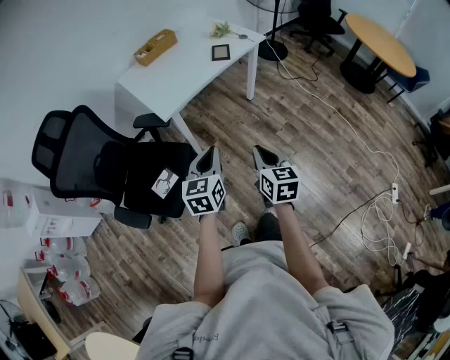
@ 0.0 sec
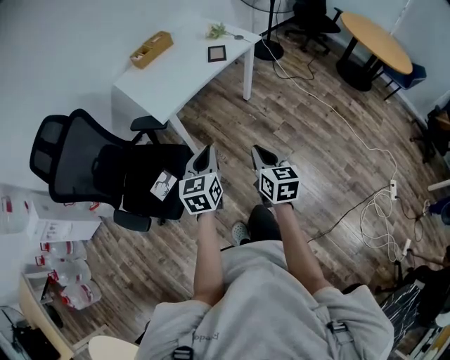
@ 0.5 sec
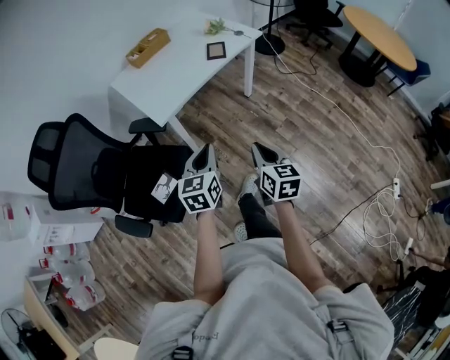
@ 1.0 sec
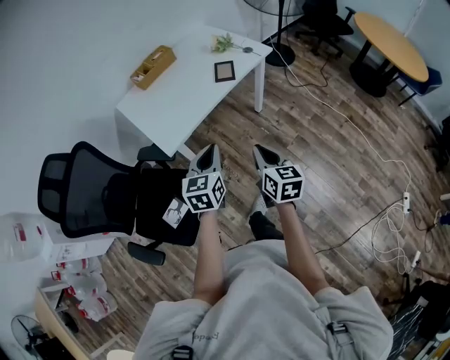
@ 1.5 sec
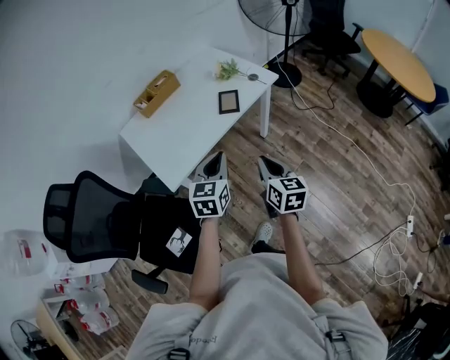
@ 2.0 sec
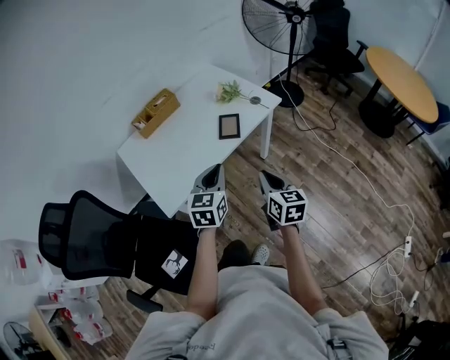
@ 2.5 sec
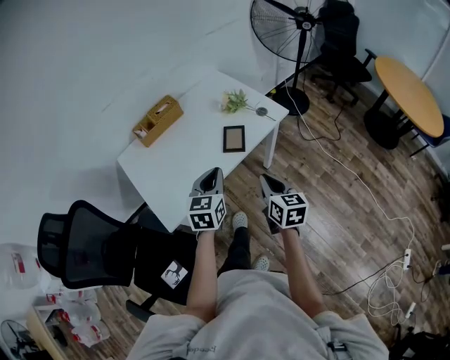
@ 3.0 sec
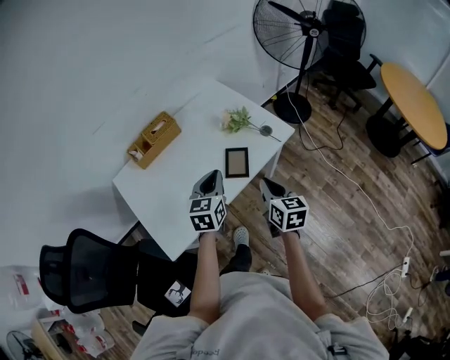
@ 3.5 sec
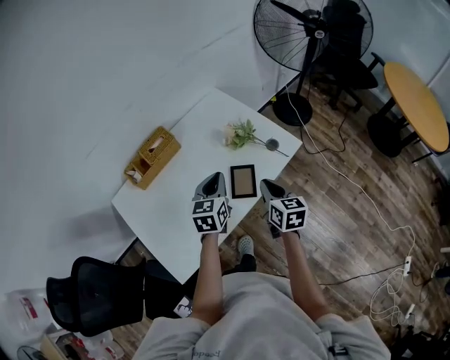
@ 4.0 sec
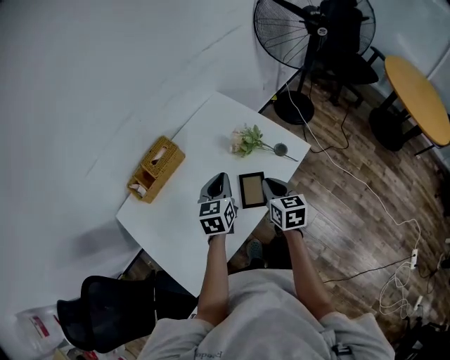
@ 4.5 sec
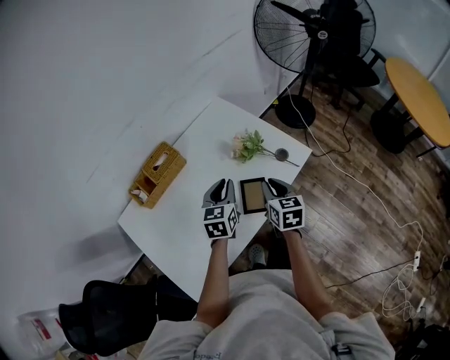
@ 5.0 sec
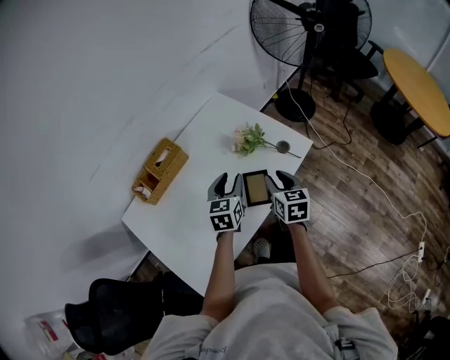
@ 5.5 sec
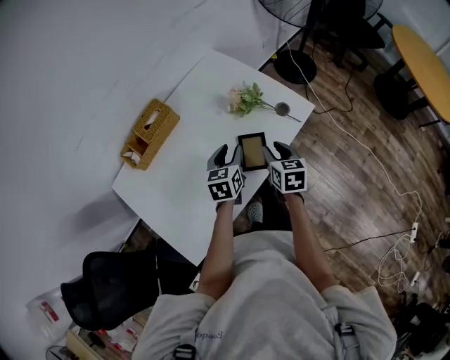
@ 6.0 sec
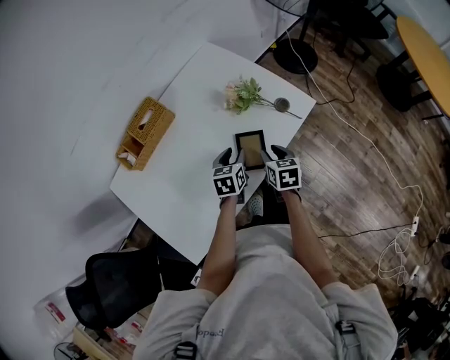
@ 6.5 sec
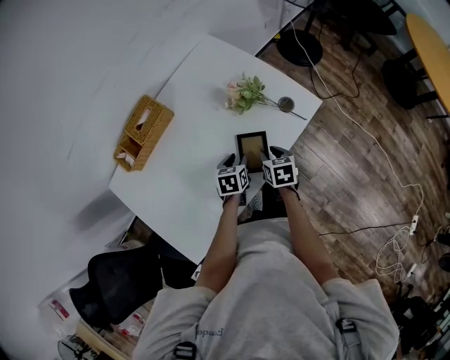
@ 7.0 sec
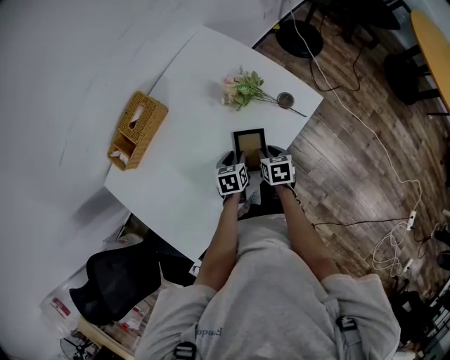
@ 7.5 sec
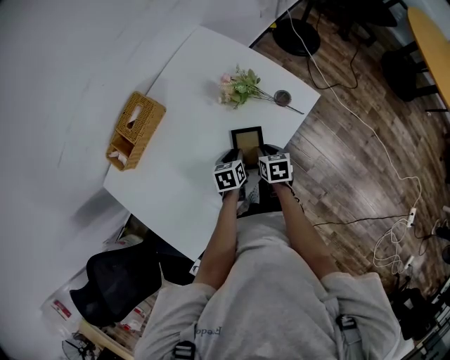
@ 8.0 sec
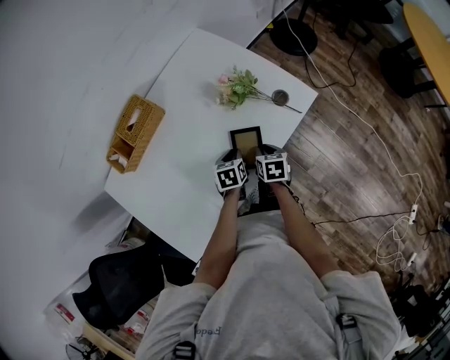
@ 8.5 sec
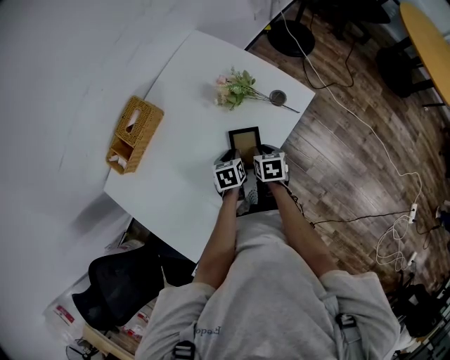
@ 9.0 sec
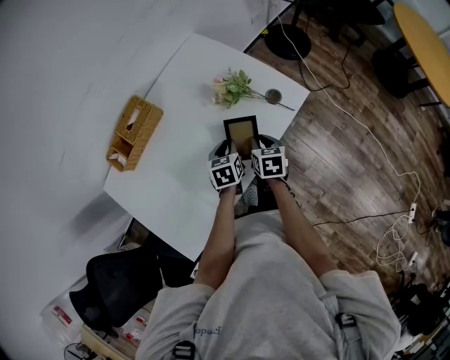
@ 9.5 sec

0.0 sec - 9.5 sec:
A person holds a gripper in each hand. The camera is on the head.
0.0 sec - 2.0 sec: The two grippers go approximately 30 cm forward.
2.0 sec - 4.0 sec: Both grippers move forward, approximately 40 cm.
4.0 sec - 5.5 sec: The left gripper moves about 5 cm, and opens up; the right gripper goes about 5 cm forward, and opens its fingers.
5.5 sec - 7.5 sec: Both grippers travel together downward, approximately 20 cm. The right gripper changes its angle by roughly 30 degrees. Meanwhile the left gripper changes its angle by some 30 degrees.
7.5 sec - 9.5 sec: Both grippers travel together upward, roughly 5 cm.

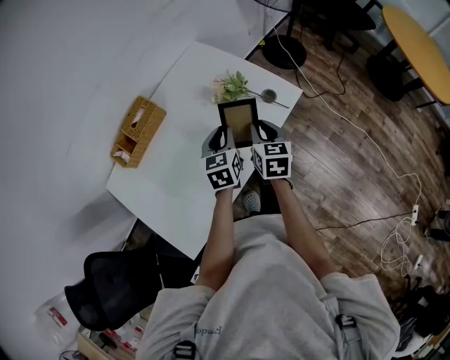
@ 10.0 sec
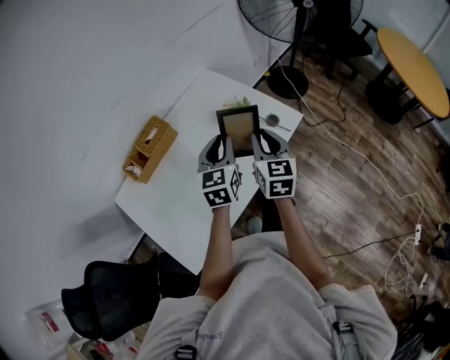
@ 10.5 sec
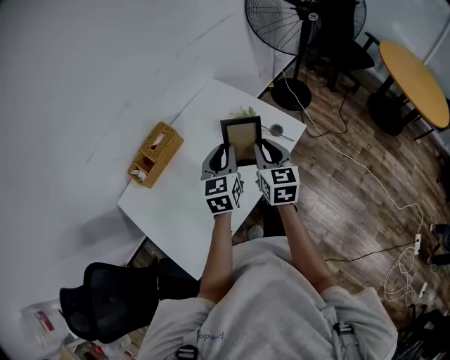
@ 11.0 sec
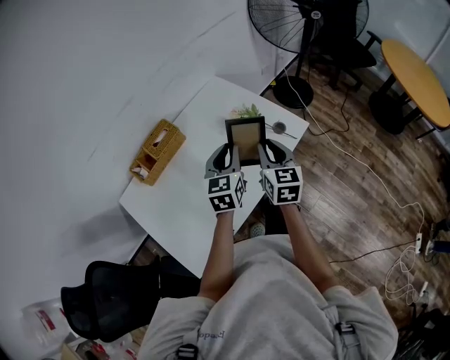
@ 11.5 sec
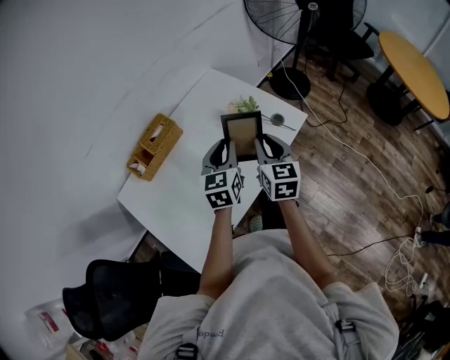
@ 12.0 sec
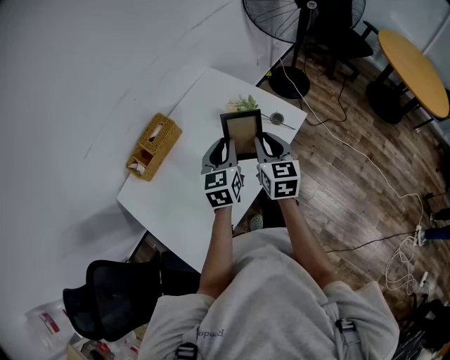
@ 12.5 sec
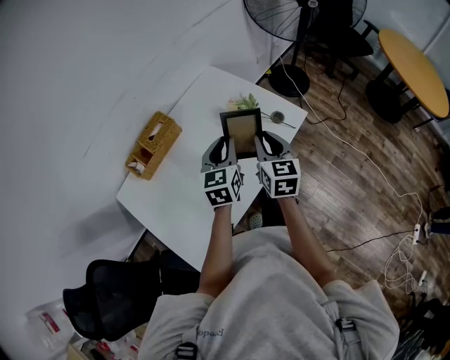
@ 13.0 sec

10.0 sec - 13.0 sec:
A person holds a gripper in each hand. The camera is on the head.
10.0 sec - 11.5 sec: The grippers both shift upward by about 10 cm.
11.5 sec - 13.0 sec: The grippers move only a little.

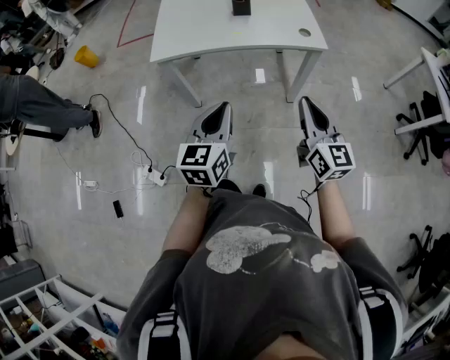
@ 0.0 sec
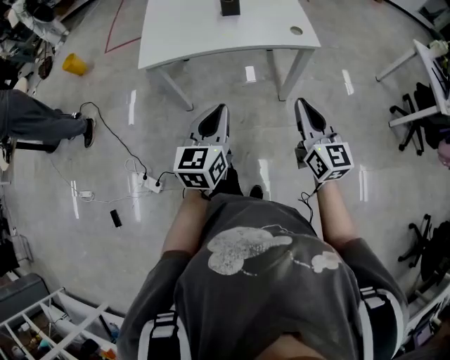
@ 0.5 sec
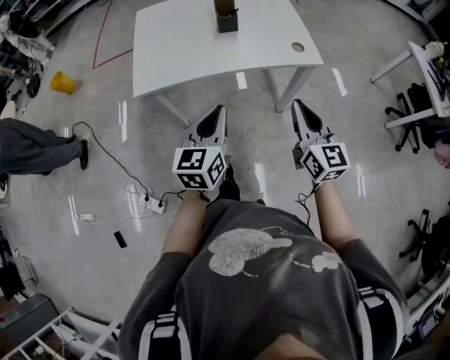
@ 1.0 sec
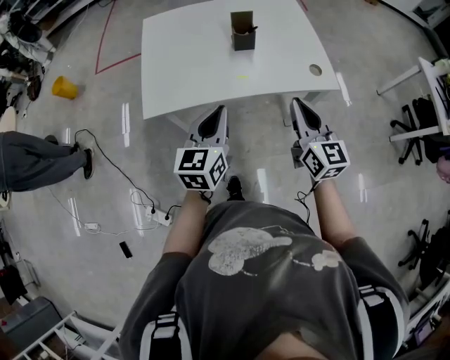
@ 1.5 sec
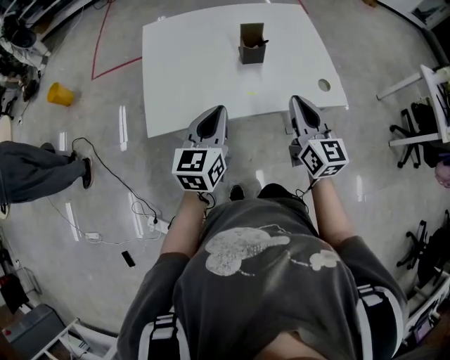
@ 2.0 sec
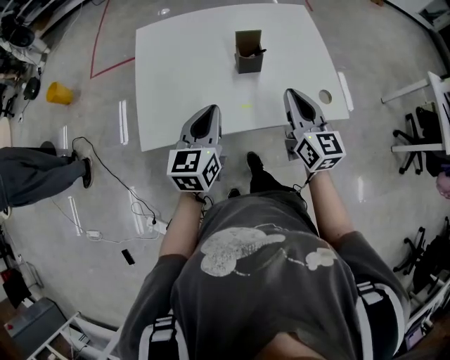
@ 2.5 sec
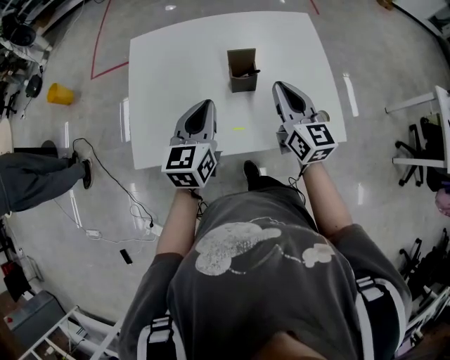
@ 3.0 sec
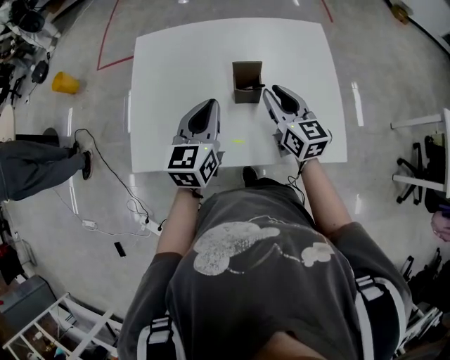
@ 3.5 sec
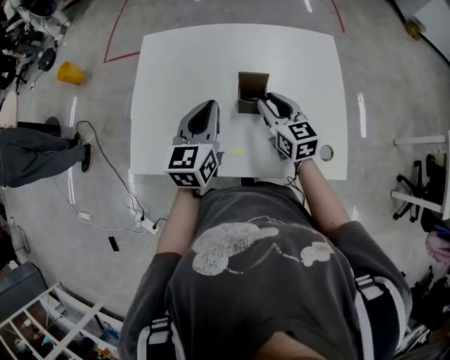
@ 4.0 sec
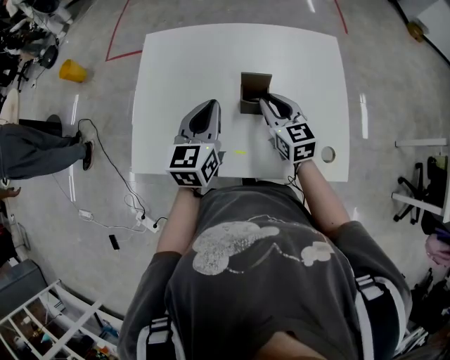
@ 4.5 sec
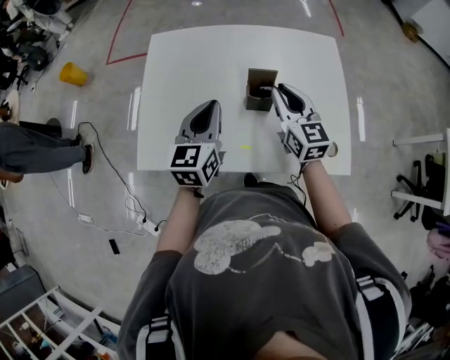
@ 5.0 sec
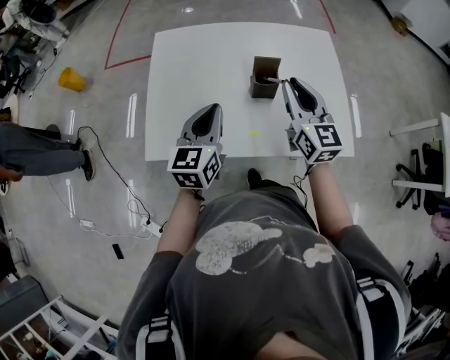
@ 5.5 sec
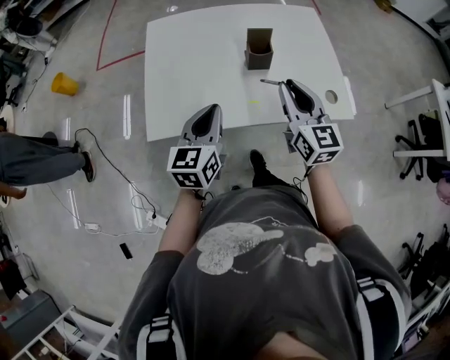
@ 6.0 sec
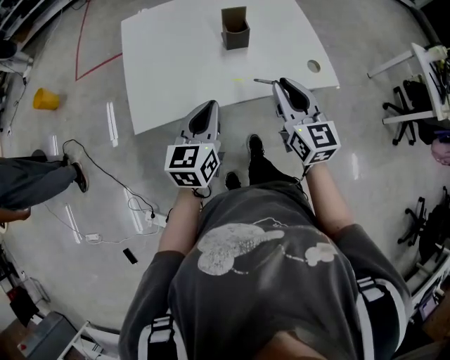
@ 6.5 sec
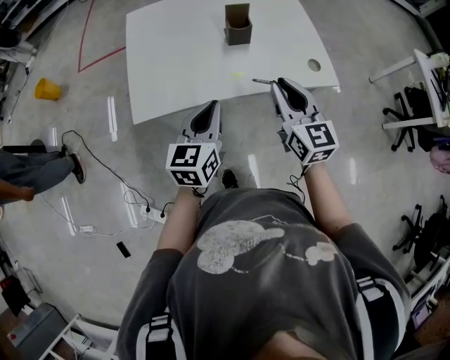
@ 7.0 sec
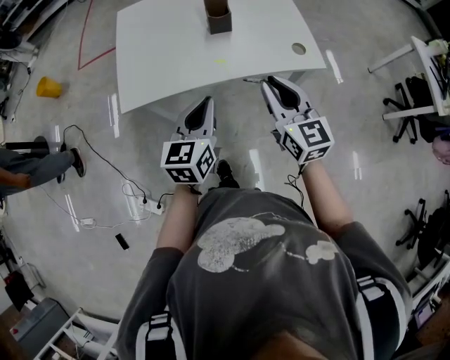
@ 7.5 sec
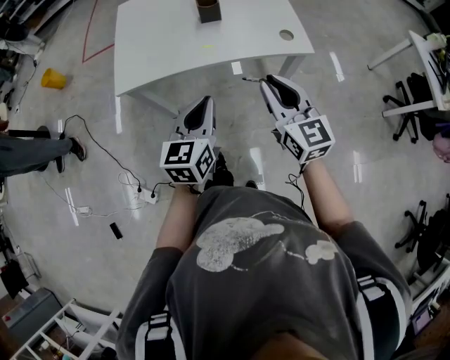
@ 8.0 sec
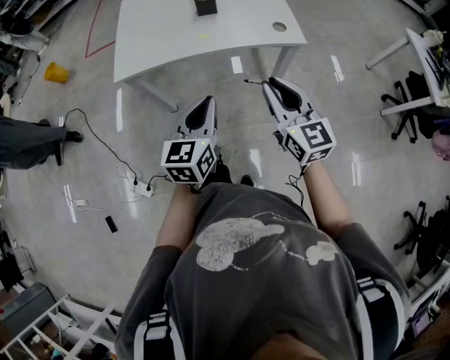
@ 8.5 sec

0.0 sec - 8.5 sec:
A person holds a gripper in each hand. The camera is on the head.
0.0 sec - 2.0 sec: Both grippers travel together forward, approximately 30 cm.
2.0 sec - 4.0 sec: The two grippers go roughly 25 cm forward. The right gripper changes its angle by some 30 degrees, and opens.
4.0 sec - 6.5 sec: Both grippers travel together backward, about 25 cm. The right gripper changes its angle by roughly 20 degrees.
6.5 sec - 8.5 sec: Both grippers travel together backward and to the right, approximately 25 cm.

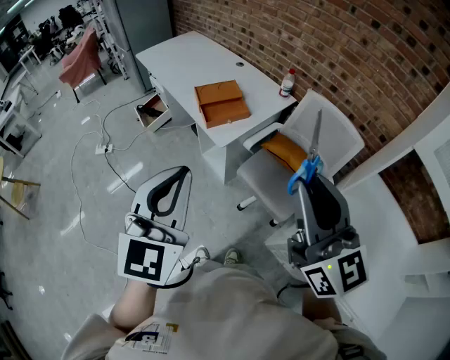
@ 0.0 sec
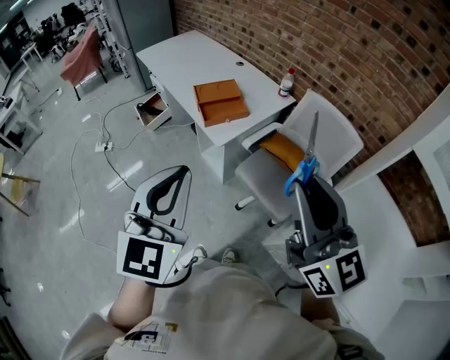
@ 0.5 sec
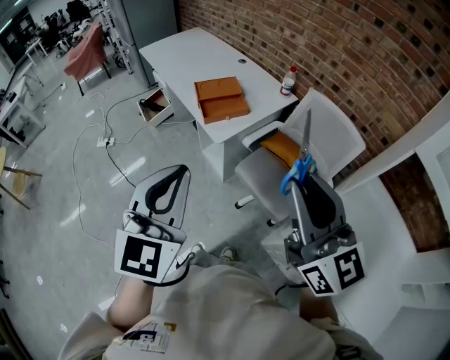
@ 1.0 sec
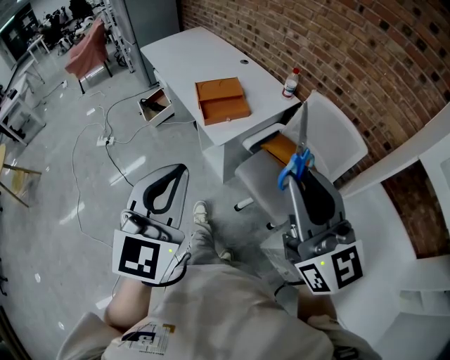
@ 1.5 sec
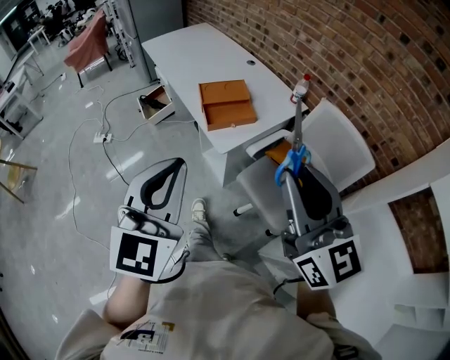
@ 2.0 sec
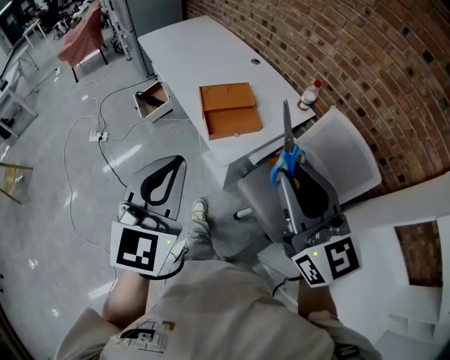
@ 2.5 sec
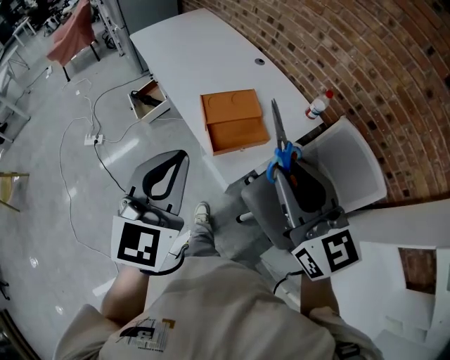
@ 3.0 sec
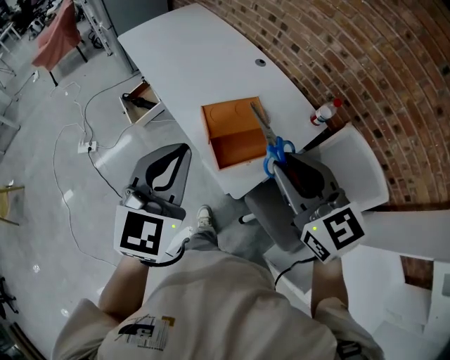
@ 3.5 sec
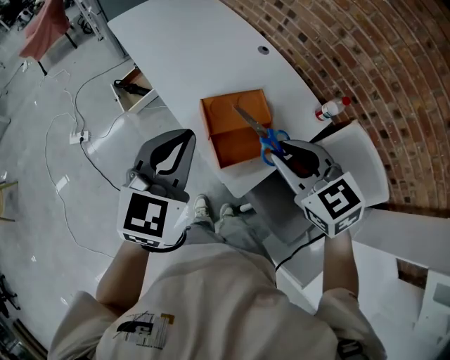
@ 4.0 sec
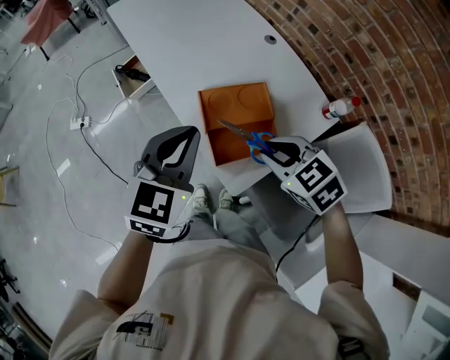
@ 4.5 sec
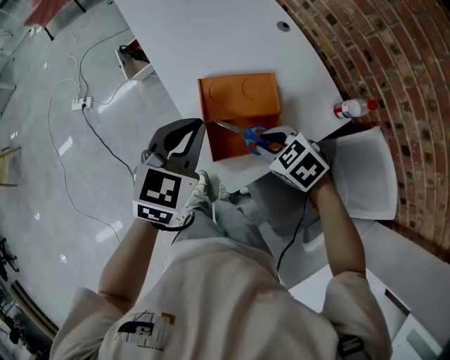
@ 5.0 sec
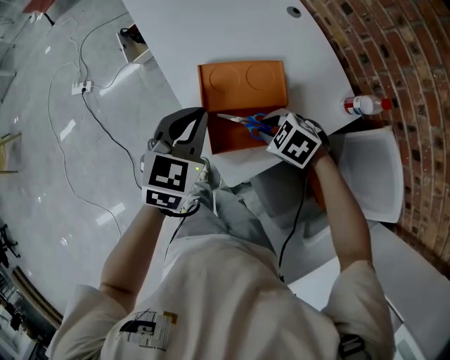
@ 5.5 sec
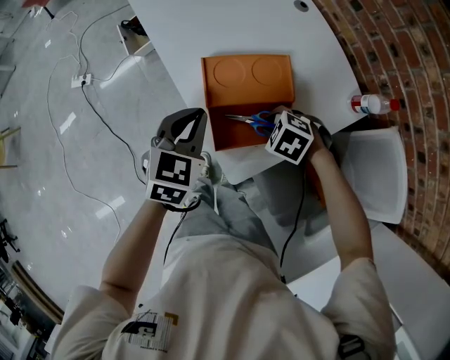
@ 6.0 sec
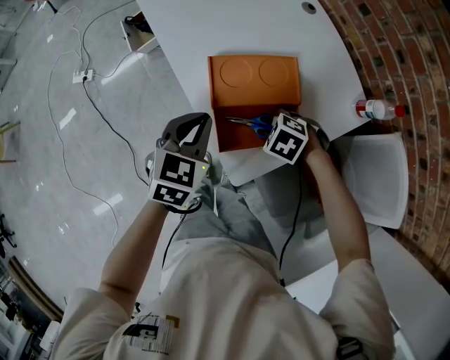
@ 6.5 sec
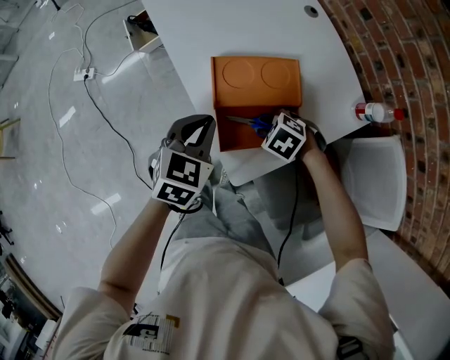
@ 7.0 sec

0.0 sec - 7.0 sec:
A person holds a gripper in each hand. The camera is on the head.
0.0 sec - 2.0 sec: The left gripper heads forward, covering some 10 cm; the right gripper heads forward and downward, covering about 10 cm.
2.0 sec - 3.5 sec: Both grippers move forward, about 35 cm. The right gripper changes its angle by roughly 30 degrees.
3.5 sec - 5.0 sec: The left gripper is displaced downward, forward and to the right by approximately 20 cm; the right gripper travels downward by about 30 cm, and angles its fingers downward, by roughly 40 degrees.
5.0 sec - 7.0 sec: The grippers both shift downward by approximately 15 cm. The right gripper rotates approximately 20 degrees.
